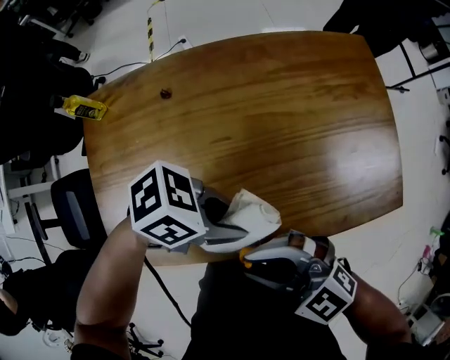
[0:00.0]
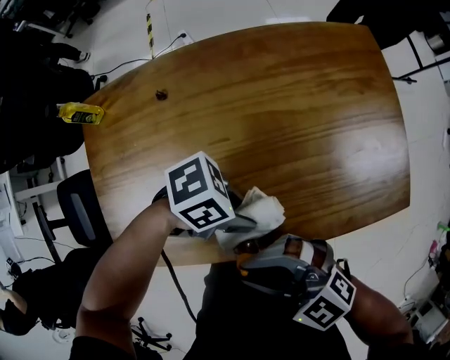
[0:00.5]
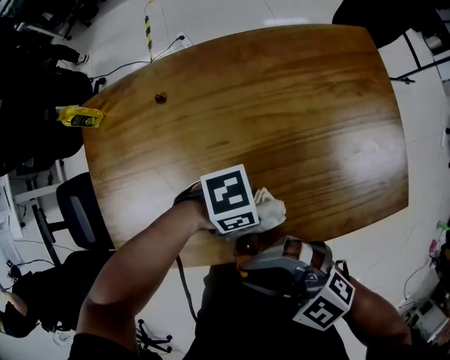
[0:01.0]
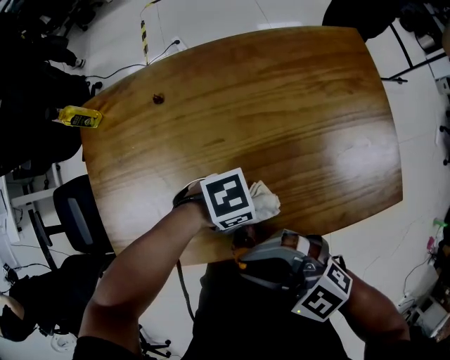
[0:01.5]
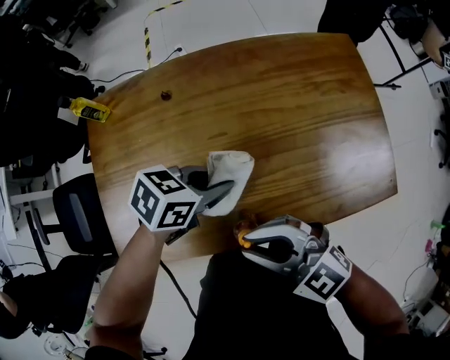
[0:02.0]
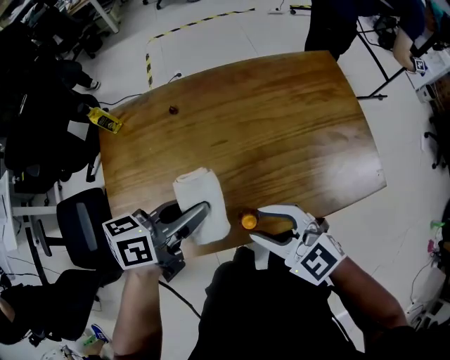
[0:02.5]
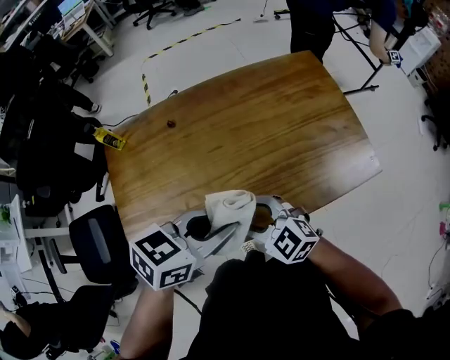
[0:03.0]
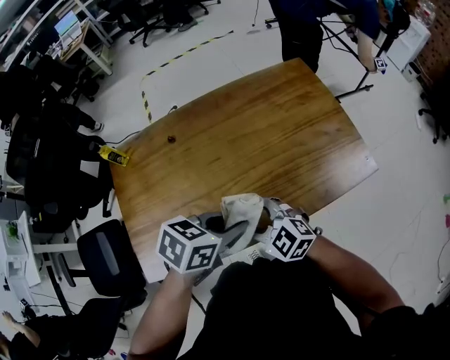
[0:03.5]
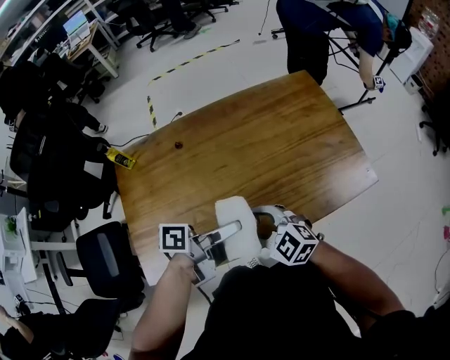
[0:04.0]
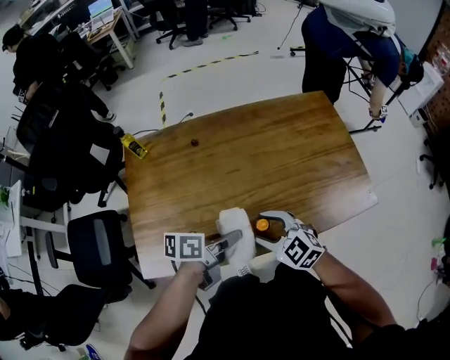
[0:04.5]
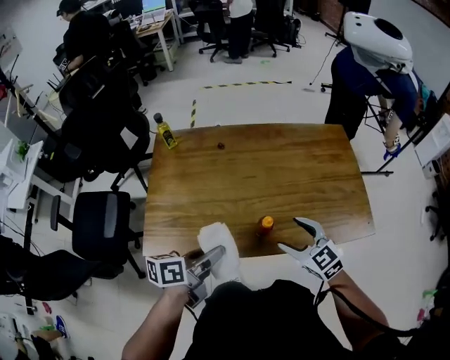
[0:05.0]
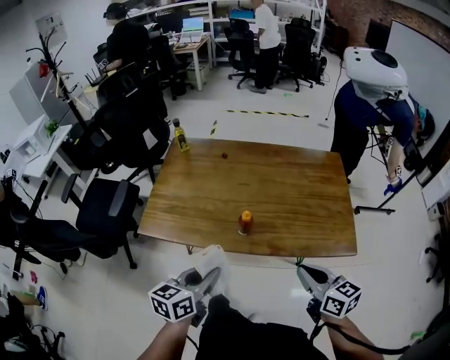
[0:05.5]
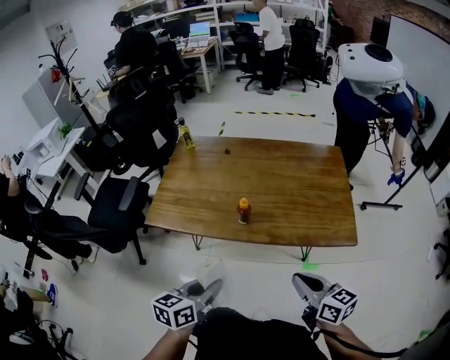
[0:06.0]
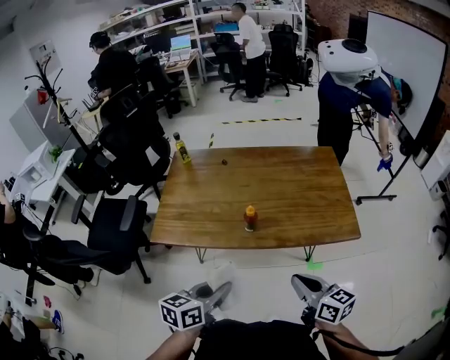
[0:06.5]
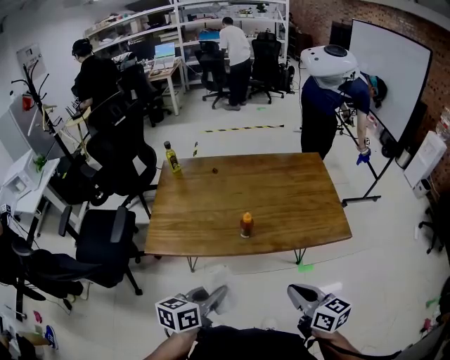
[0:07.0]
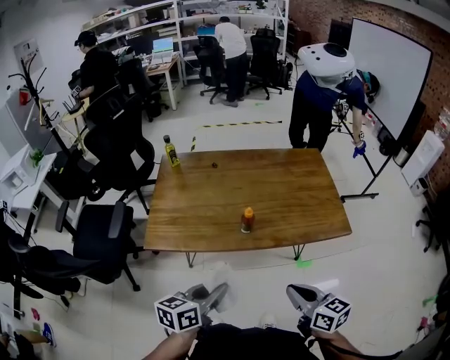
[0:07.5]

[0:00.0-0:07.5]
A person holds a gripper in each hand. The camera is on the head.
0:00.0 to 0:02.0: The left gripper rotates some 30 degrees.
0:02.0 to 0:04.0: The right gripper goes some 5 cm downward, and opens its fingers; the left gripper ends up roughly 10 cm from where it was, and tilts its fingers about 30 degrees upward.
0:04.0 to 0:05.5: The left gripper reaches approximately 5 cm downward, then returns, and rotates approximately 70 degrees. Meanwhile the right gripper changes place by roughly 30 cm, swivels approximately 40 degrees, and closes up.
0:05.5 to 0:07.5: The left gripper heads backward, covering about 5 cm. Meanwhile the right gripper heads backward and to the left, covering about 15 cm.

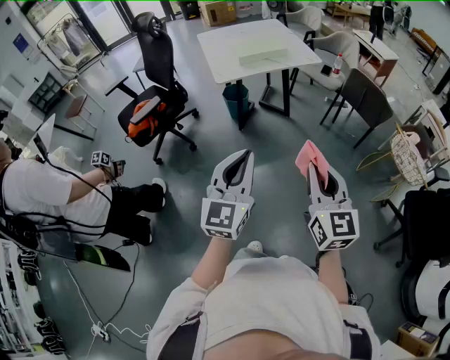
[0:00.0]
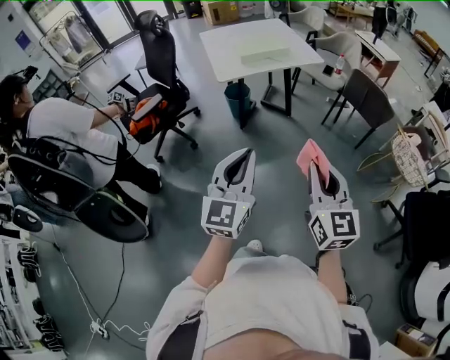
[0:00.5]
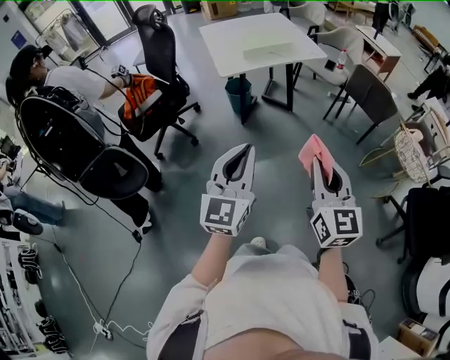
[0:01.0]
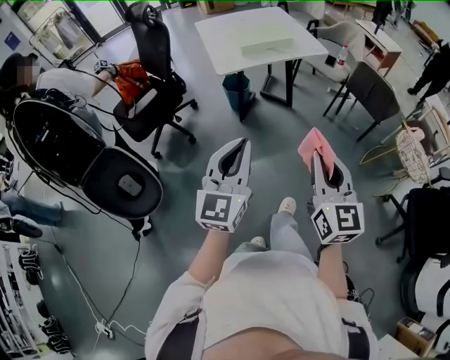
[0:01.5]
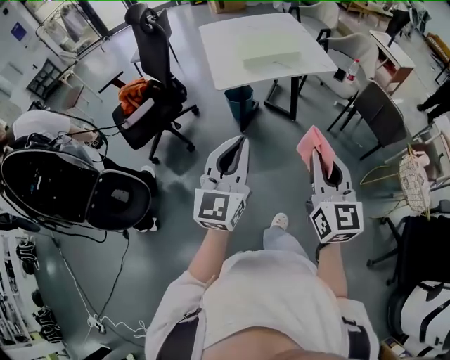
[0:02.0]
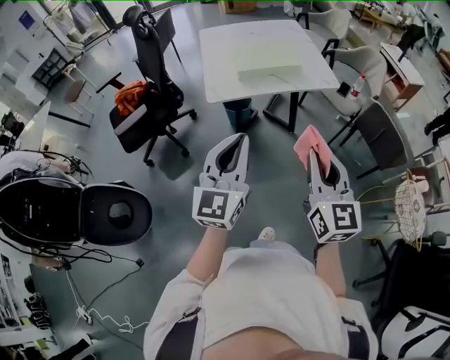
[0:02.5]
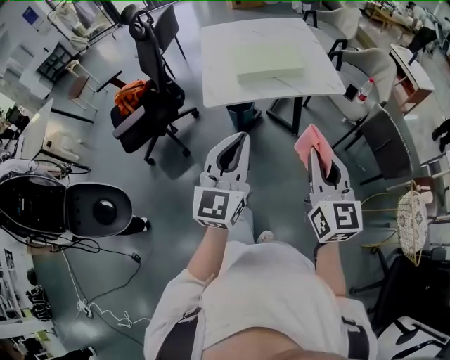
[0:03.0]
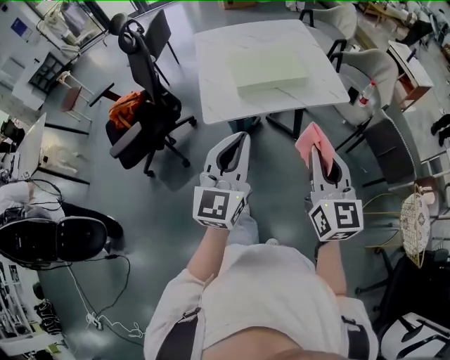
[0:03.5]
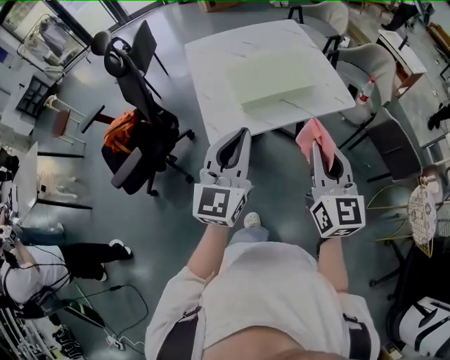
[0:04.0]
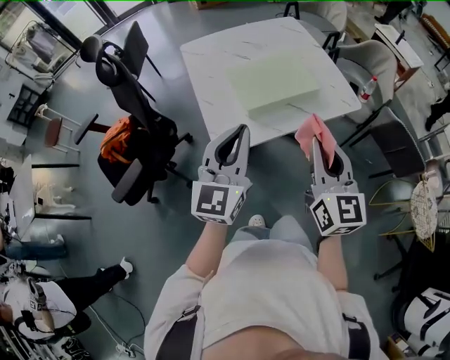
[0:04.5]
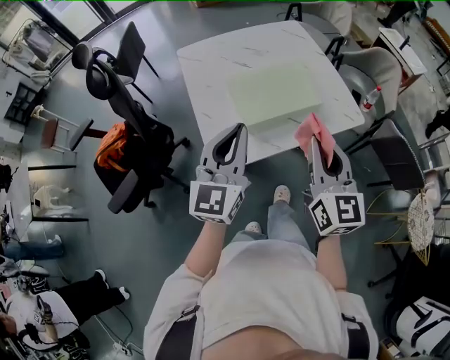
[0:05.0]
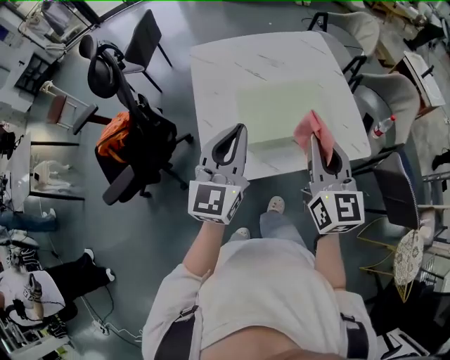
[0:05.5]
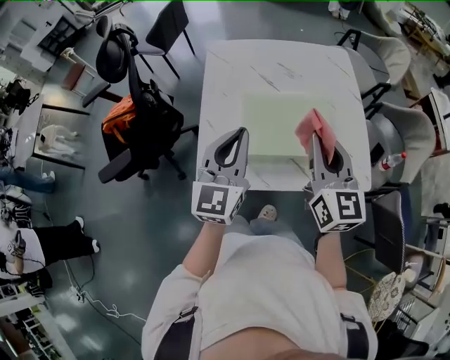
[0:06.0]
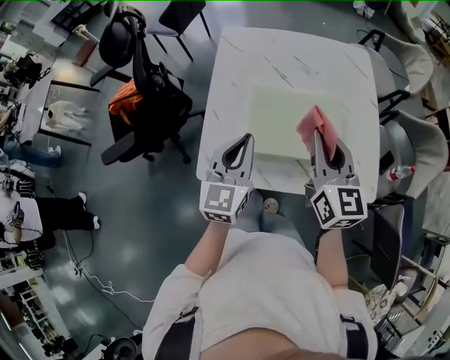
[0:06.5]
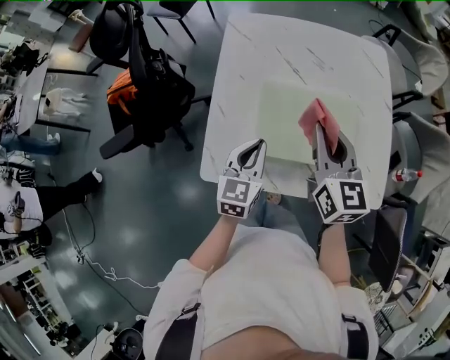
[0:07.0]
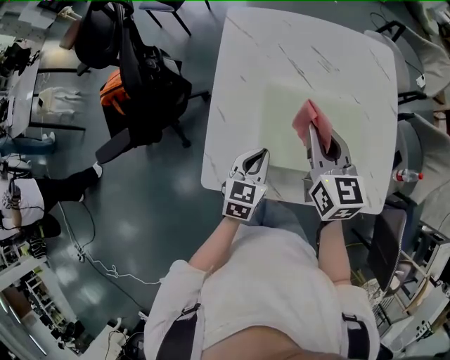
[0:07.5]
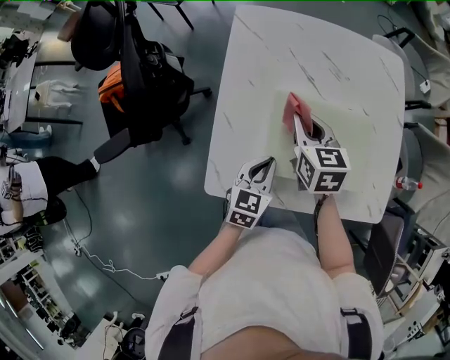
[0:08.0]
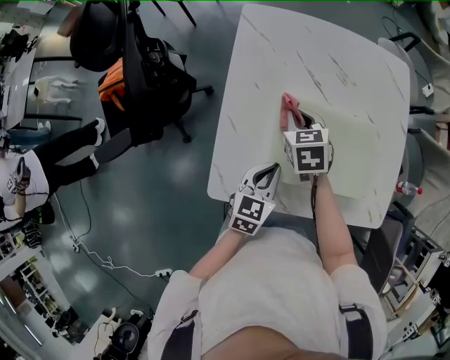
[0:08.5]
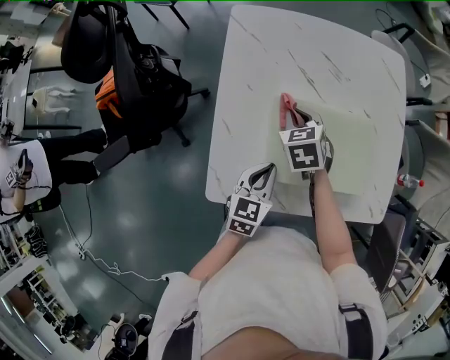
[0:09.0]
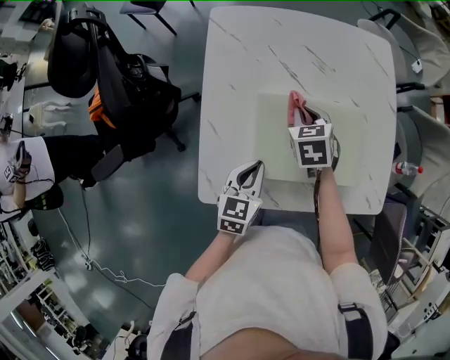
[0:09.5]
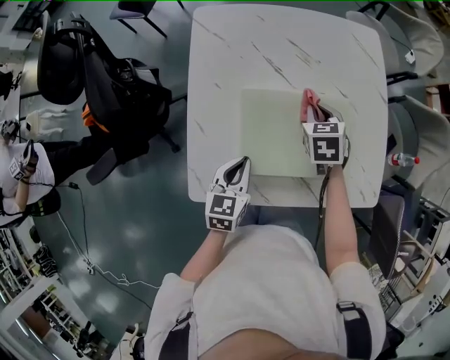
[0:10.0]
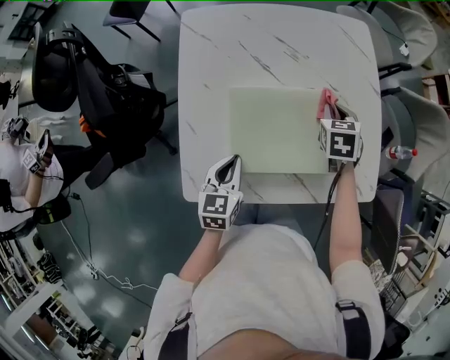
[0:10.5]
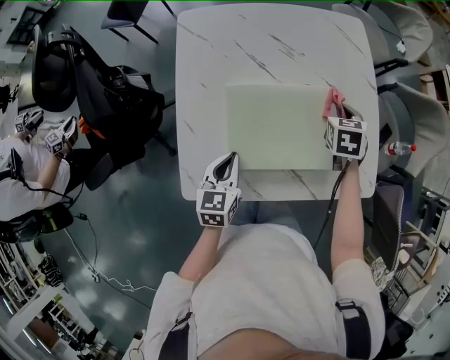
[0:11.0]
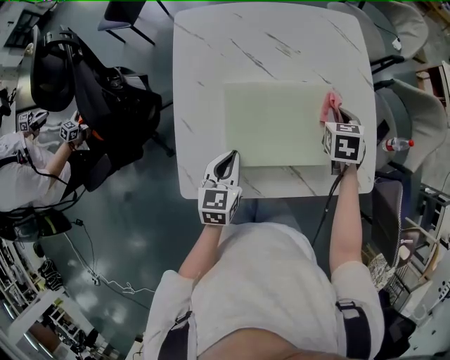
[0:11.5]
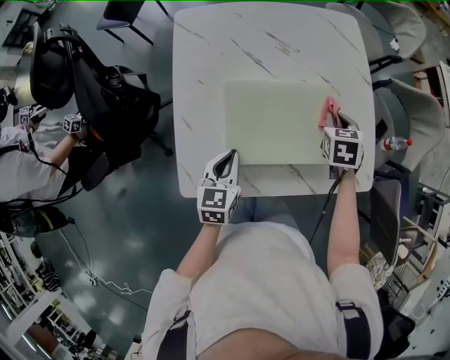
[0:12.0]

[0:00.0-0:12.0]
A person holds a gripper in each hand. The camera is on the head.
0:00.0 to 0:02.0: The grippers both shift forward by roughly 20 cm.
0:02.0 to 0:04.0: The grippers both shift forward by roughly 35 cm.
0:04.0 to 0:06.0: Both grippers travel together forward, about 30 cm.
0:06.0 to 0:08.0: The right gripper travels forward, downward and to the left by about 30 cm, and tilts its fingers about 30 degrees downward. Meanwhile the left gripper heads downward, covering about 25 cm, and tips its fingers downward by some 30 degrees.
0:08.0 to 0:10.0: The right gripper goes roughly 15 cm to the right and downward, and rotates roughly 30 degrees.
0:10.0 to 0:12.0: The right gripper is displaced to the right by roughly 15 cm.

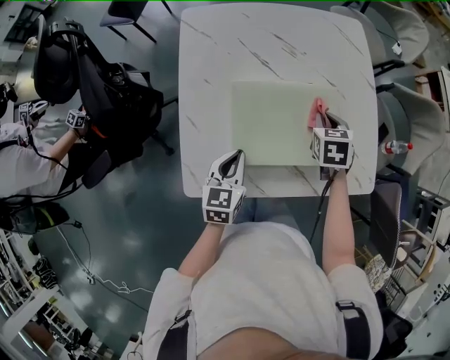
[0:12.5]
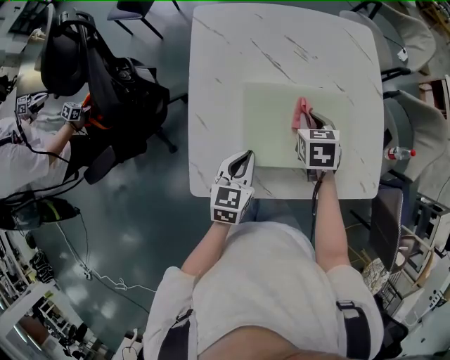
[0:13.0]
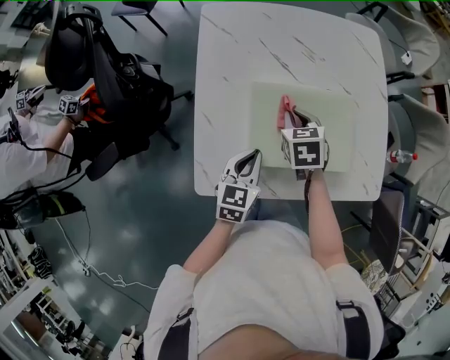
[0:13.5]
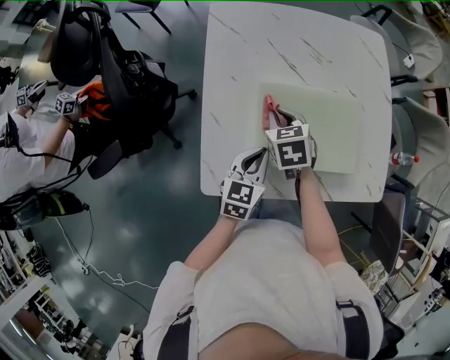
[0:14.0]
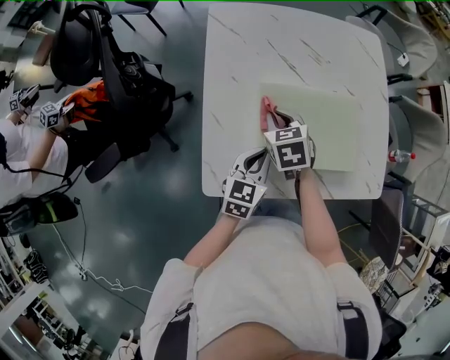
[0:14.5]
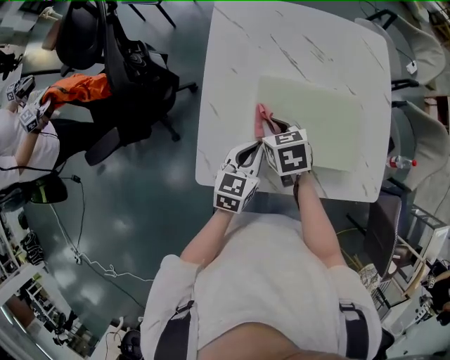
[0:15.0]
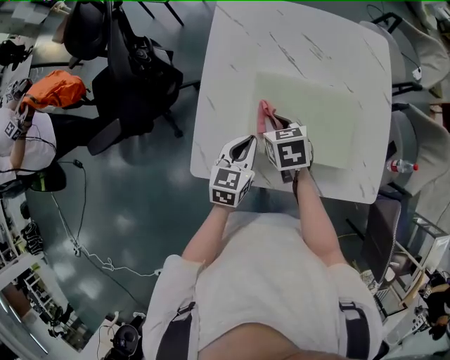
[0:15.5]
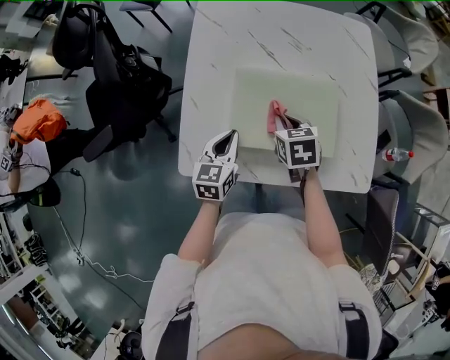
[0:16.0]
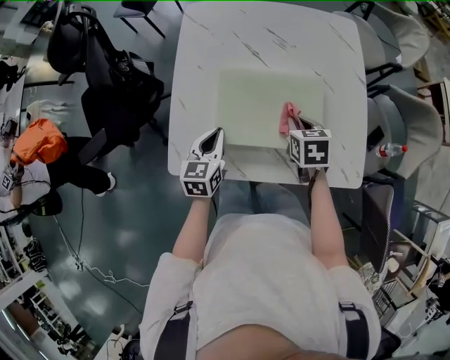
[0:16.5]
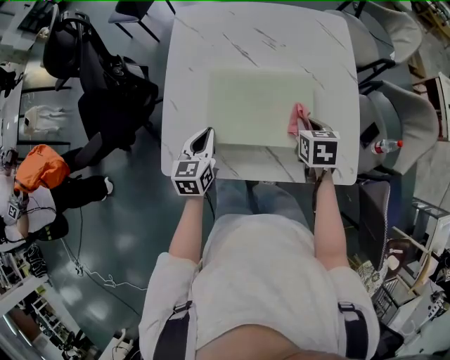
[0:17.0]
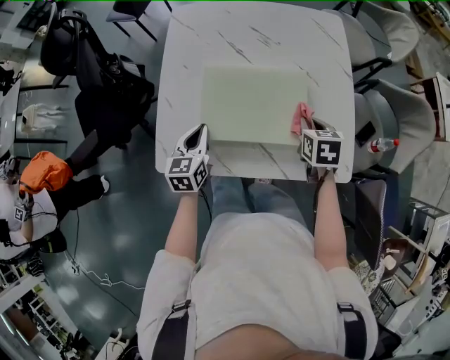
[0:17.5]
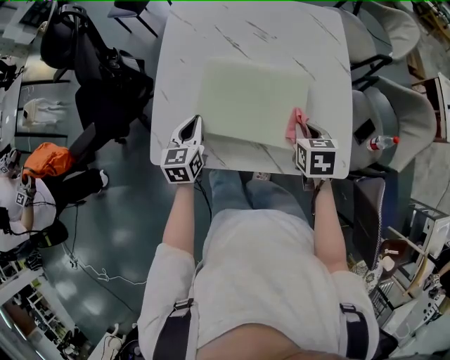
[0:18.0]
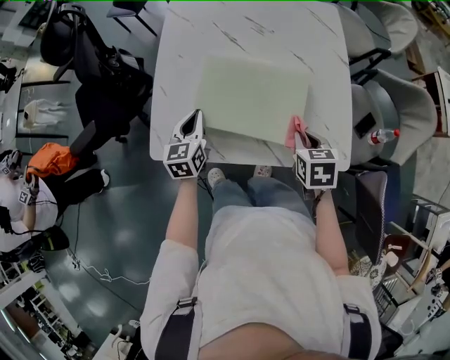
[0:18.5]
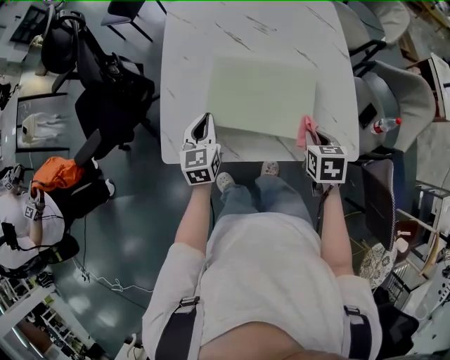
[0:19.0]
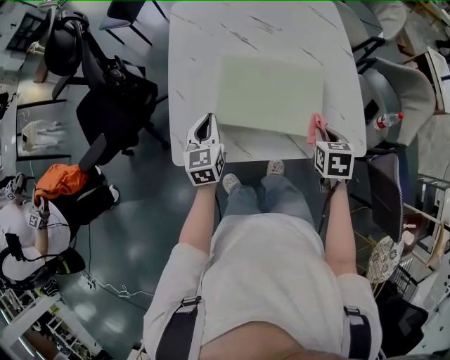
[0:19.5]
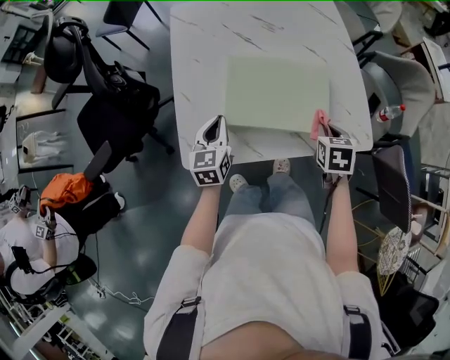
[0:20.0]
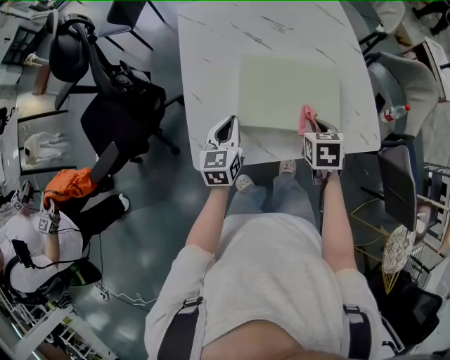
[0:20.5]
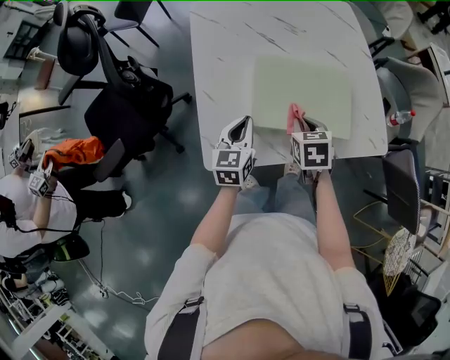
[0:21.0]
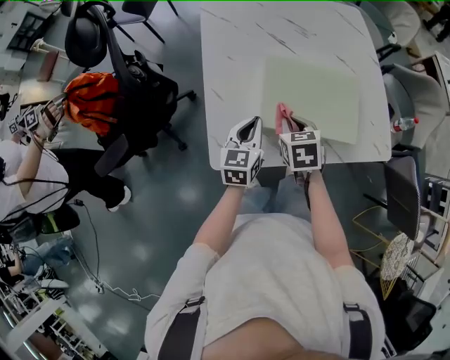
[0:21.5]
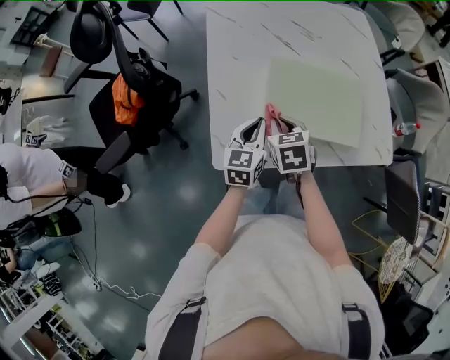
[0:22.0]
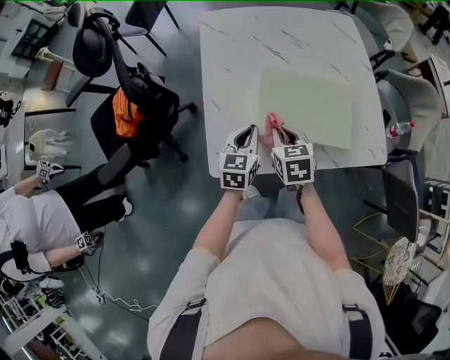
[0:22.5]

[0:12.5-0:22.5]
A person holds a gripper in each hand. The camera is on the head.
0:12.5 to 0:14.5: The right gripper travels to the left by roughly 25 cm.
0:14.5 to 0:16.5: The right gripper moves to the right, some 20 cm.
0:16.5 to 0:18.5: The right gripper goes roughly 15 cm backward and to the right.
0:18.5 to 0:20.5: The right gripper goes approximately 10 cm to the left.
0:20.5 to 0:22.5: The right gripper moves to the left, about 15 cm.
